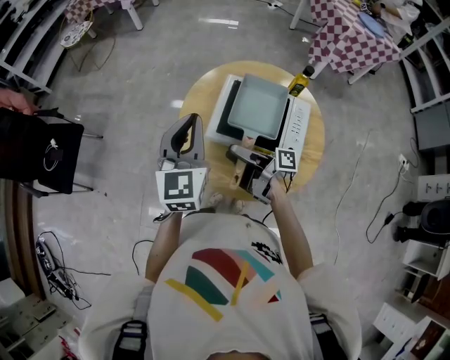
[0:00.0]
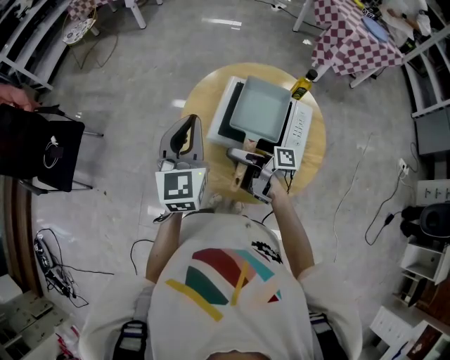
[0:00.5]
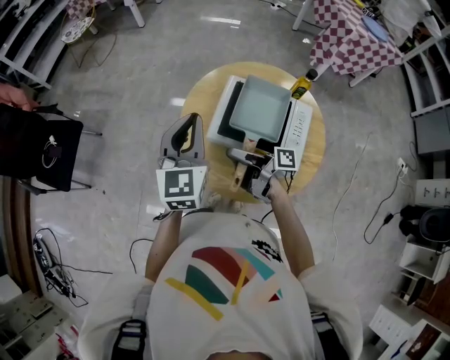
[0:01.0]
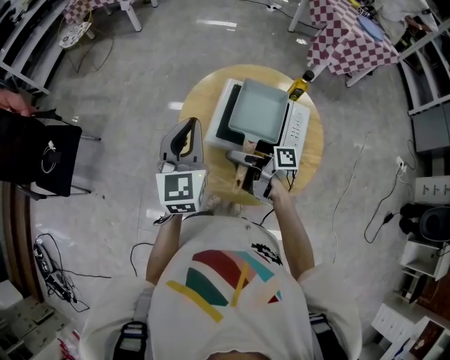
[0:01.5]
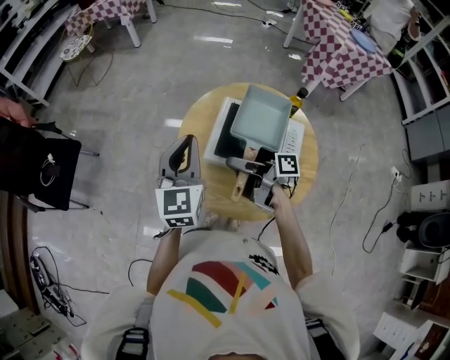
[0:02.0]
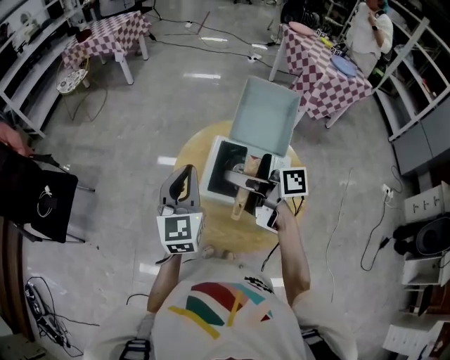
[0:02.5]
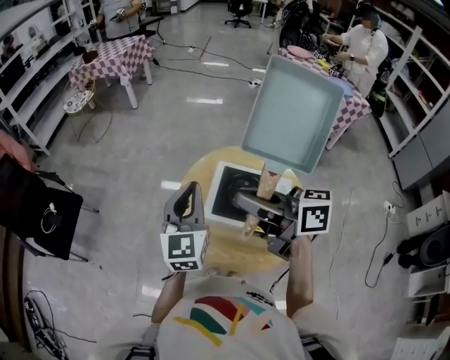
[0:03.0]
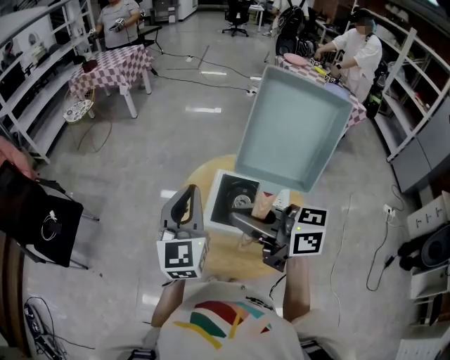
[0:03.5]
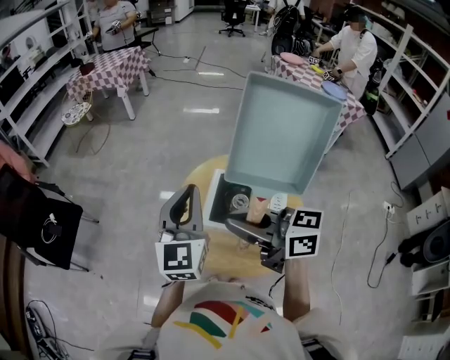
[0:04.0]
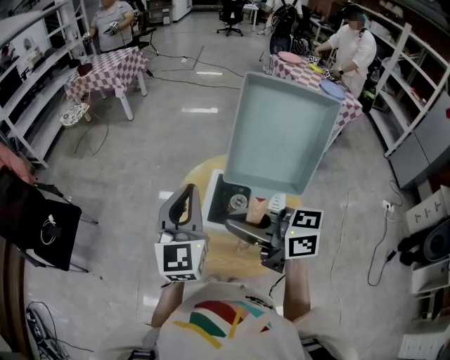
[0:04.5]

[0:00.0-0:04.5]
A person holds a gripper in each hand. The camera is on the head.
0:00.0 to 0:02.0: The right gripper closes up.
0:02.0 to 0:04.5: The left gripper shifts approximately 10 cm upward, while the right gripper is displaced upward by roughly 25 cm, and twists about 60 degrees counterclockwise, seen from behind.

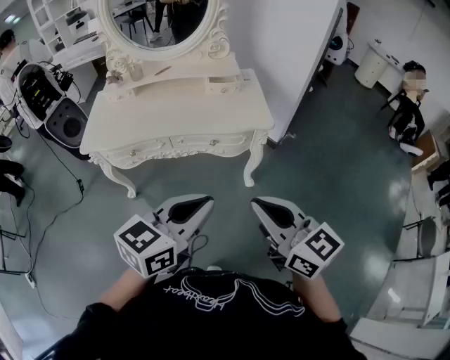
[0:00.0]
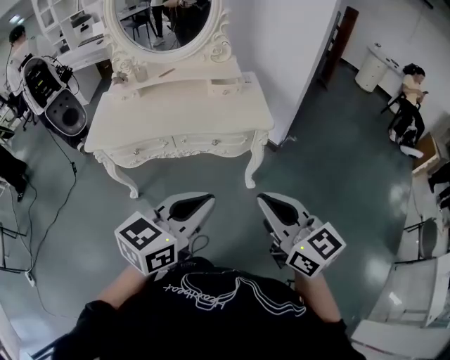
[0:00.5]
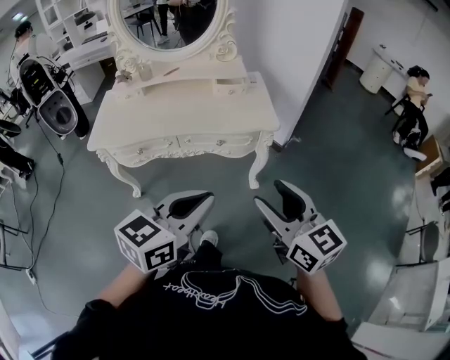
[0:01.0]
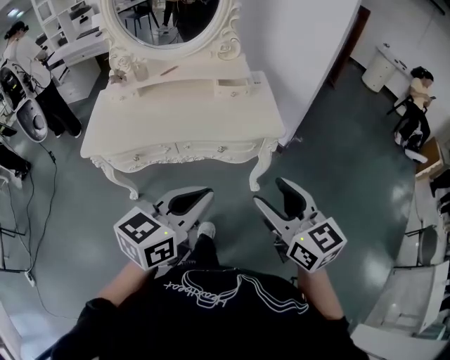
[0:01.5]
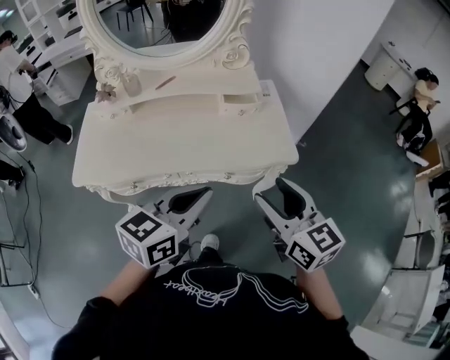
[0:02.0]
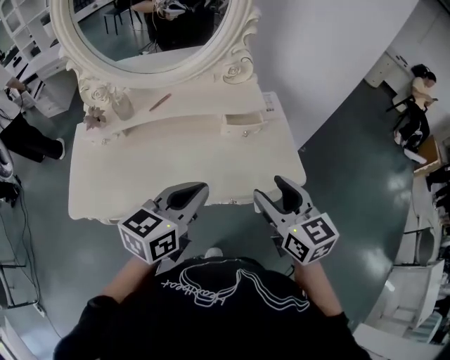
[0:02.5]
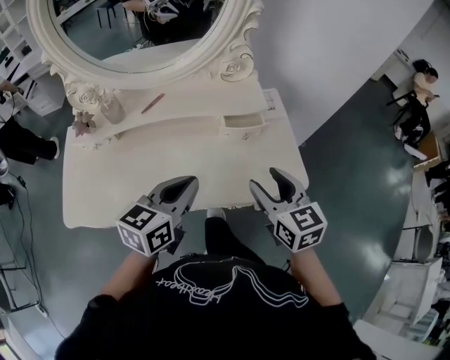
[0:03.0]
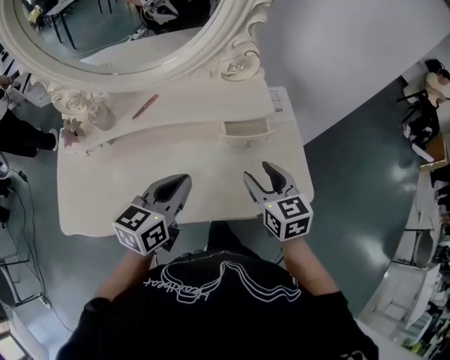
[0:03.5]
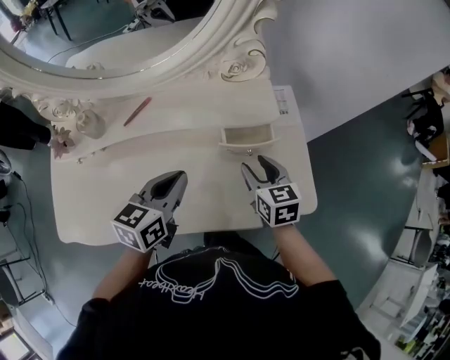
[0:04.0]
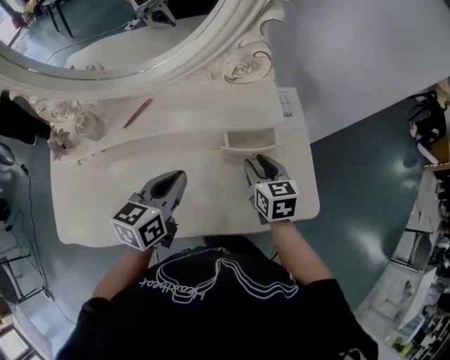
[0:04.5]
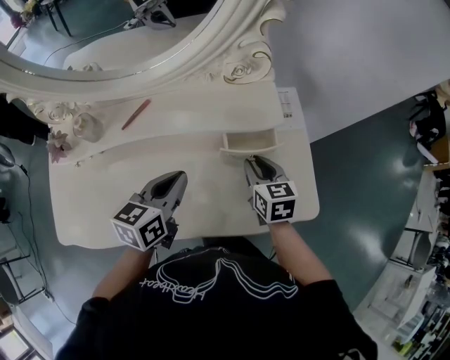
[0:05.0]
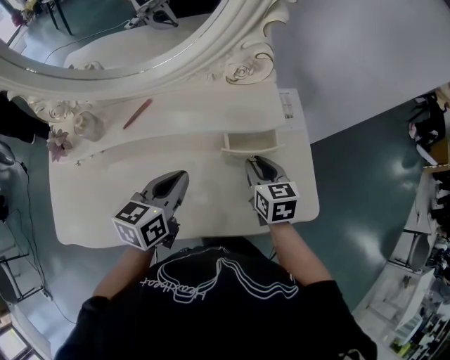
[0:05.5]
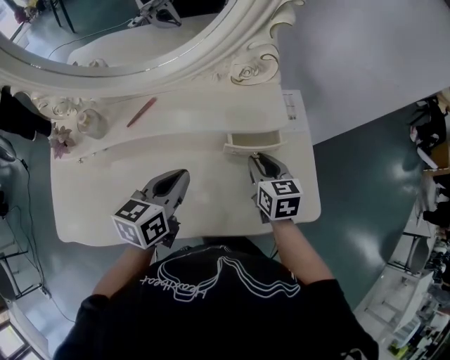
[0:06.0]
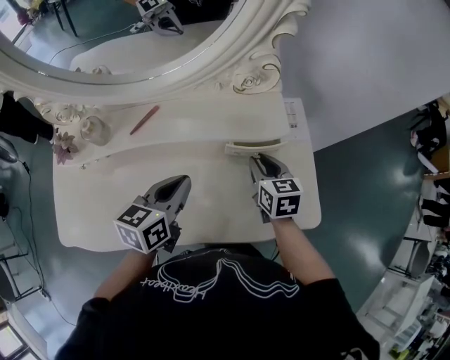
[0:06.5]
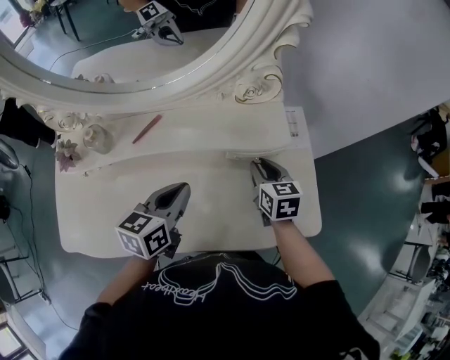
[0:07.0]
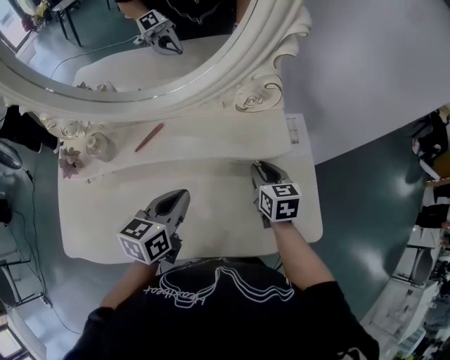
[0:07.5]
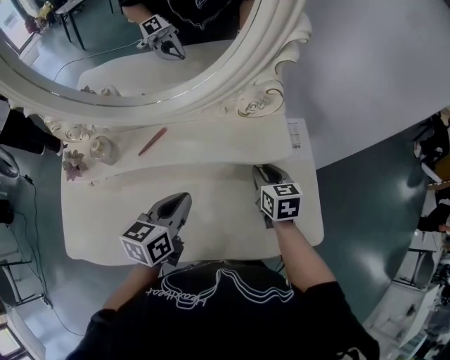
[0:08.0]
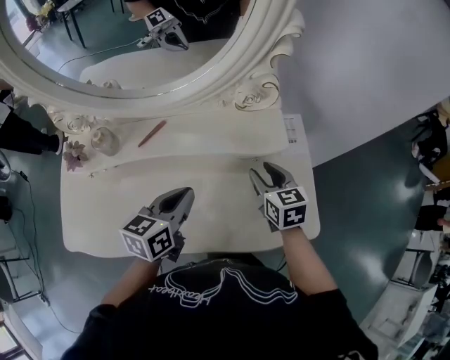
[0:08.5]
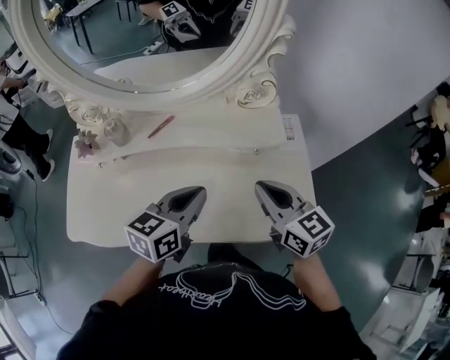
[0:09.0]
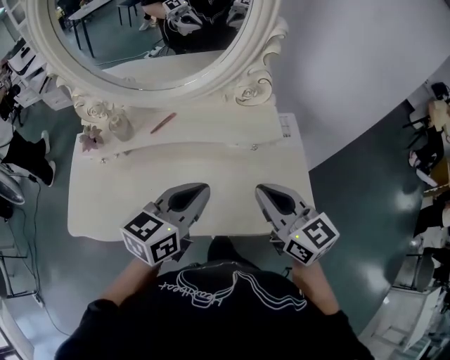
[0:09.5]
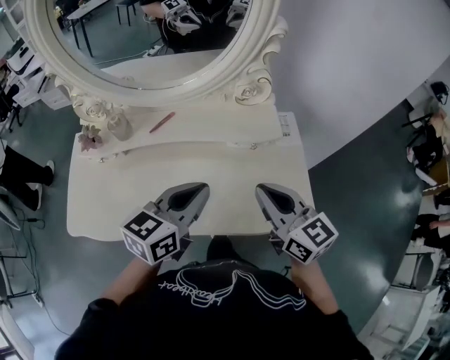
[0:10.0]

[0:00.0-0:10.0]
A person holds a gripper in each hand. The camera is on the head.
0:00.0 to 0:02.0: The right gripper shifts roughly 25 cm forward, and opens; the left gripper is displaced forward and to the left by some 25 cm.
0:02.0 to 0:04.0: The grippers both shift forward and downward by some 35 cm. The right gripper rotates approximately 20 degrees.
0:04.0 to 0:06.0: The grippers move only a little.
0:06.0 to 0:08.0: The right gripper goes roughly 5 cm forward.
0:08.0 to 0:10.0: The right gripper shifts roughly 25 cm upward and backward, and rotates approximately 30 degrees. The left gripper is displaced upward, backward and to the right by approximately 15 cm.

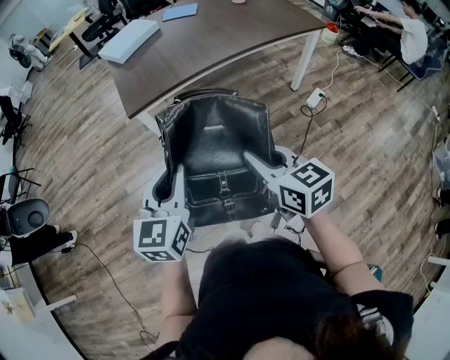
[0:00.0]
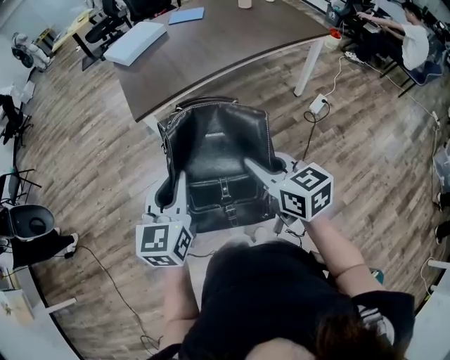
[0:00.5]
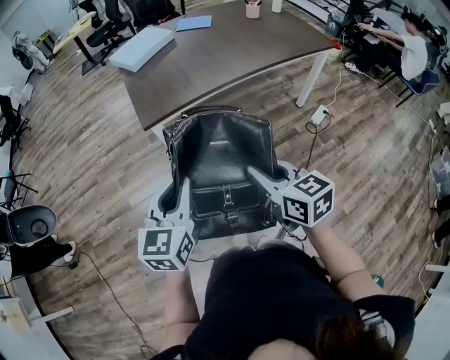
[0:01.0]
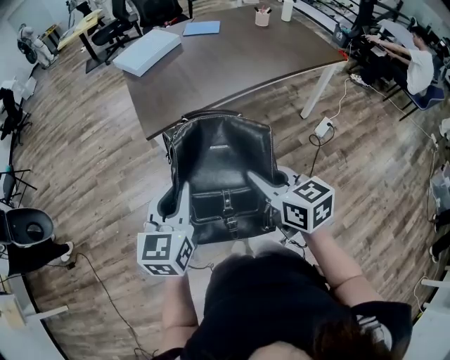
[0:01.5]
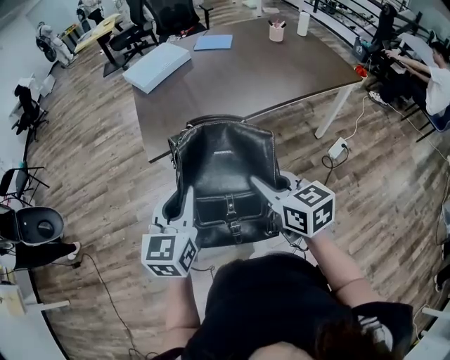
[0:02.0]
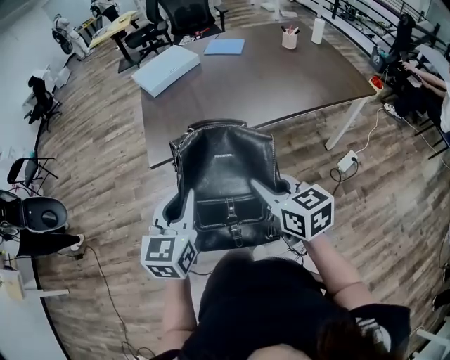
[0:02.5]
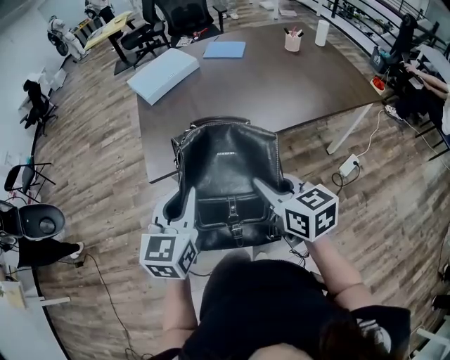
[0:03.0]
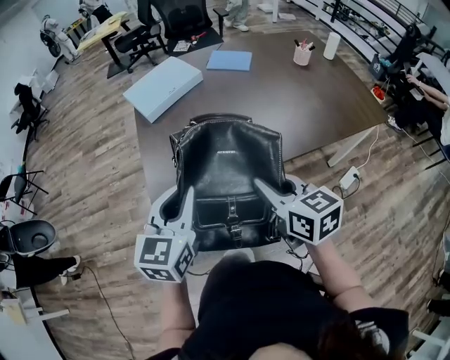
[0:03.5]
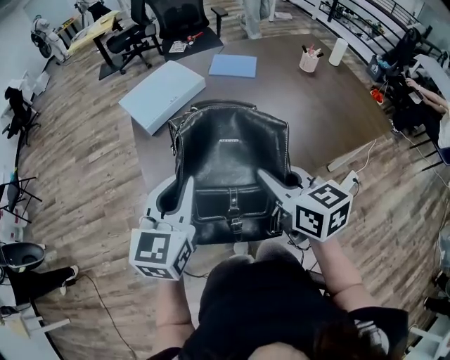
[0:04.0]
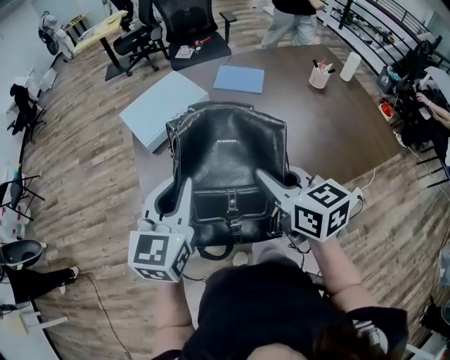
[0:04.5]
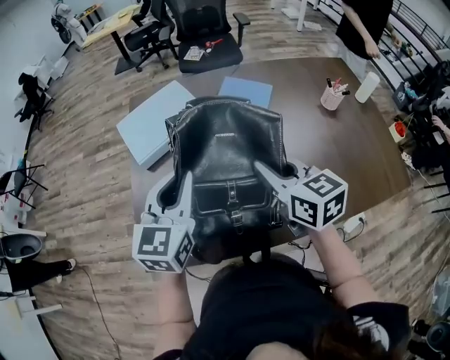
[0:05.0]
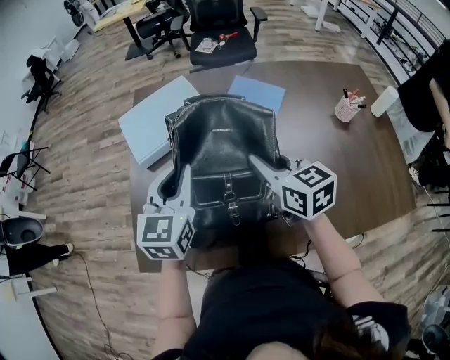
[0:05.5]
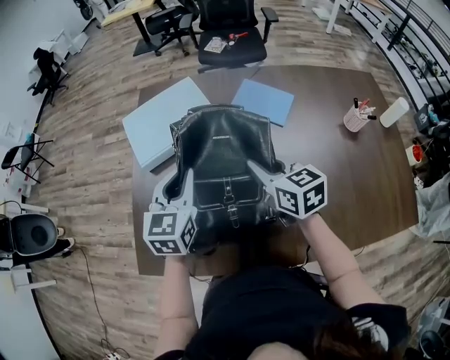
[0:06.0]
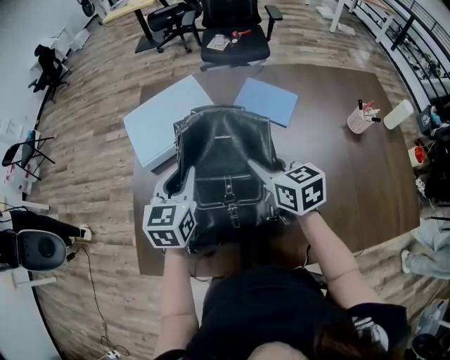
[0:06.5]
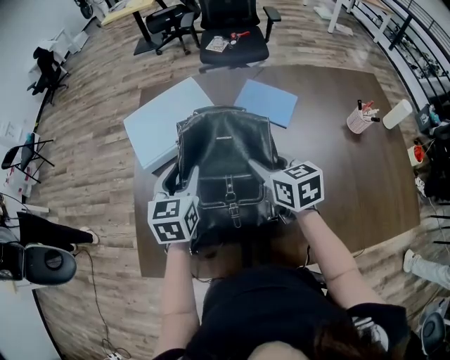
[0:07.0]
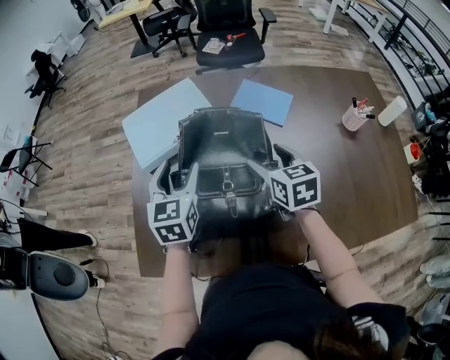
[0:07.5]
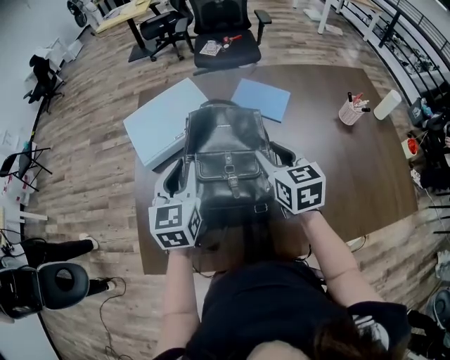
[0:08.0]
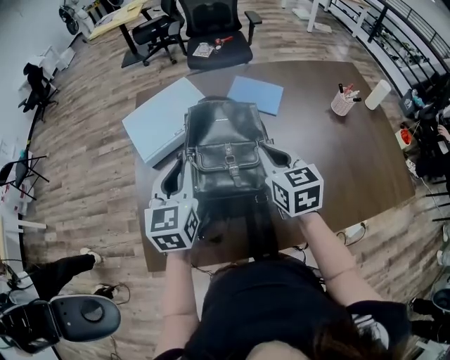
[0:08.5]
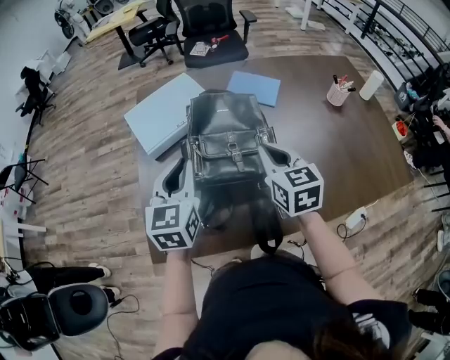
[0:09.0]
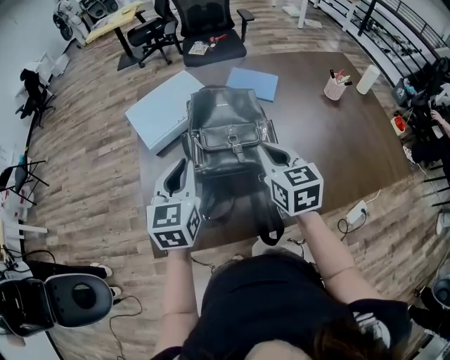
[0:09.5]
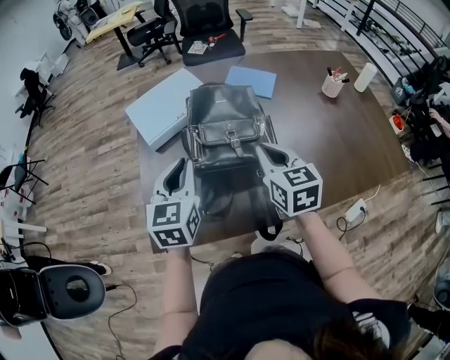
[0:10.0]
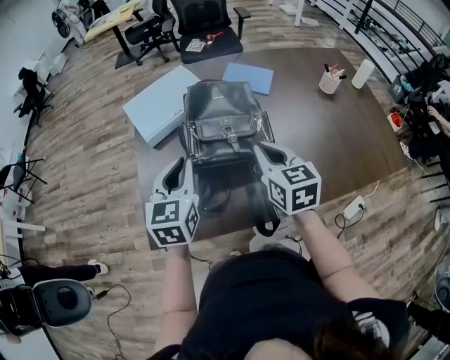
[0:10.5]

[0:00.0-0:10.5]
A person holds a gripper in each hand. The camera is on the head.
0:00.0 to 0:02.0: Both grippers travel together forward, about 15 cm.
0:02.0 to 0:04.0: The two grippers go some 35 cm forward.
0:04.0 to 0:06.5: Both grippers move forward, about 30 cm. The left gripper swivels some 20 degrees.
0:06.5 to 0:08.5: The left gripper is displaced upward by about 5 cm, and opens, then closes again. Meanwhile the right gripper shifts roughly 5 cm backward, changes its angle by some 20 degrees, and opens, then closes once more.
0:08.5 to 0:10.5: The two grippers go roughly 10 cm backward.

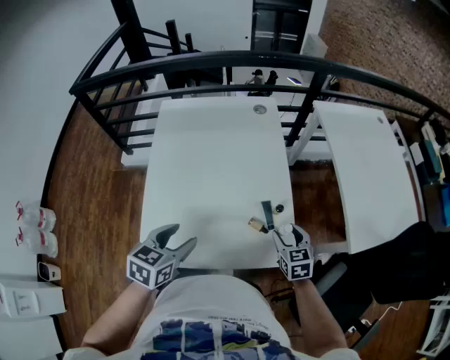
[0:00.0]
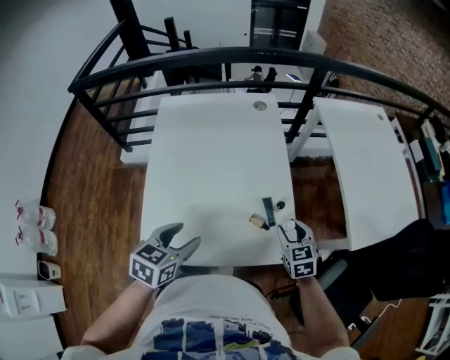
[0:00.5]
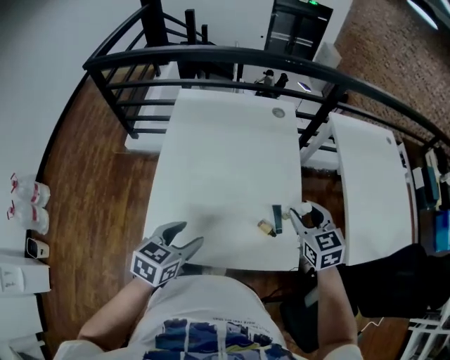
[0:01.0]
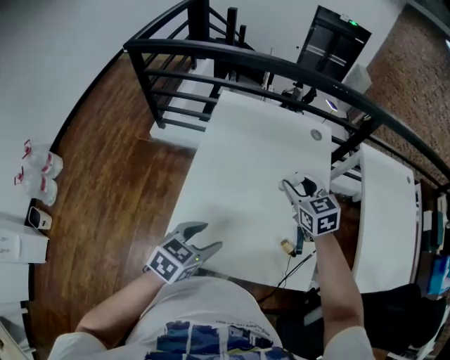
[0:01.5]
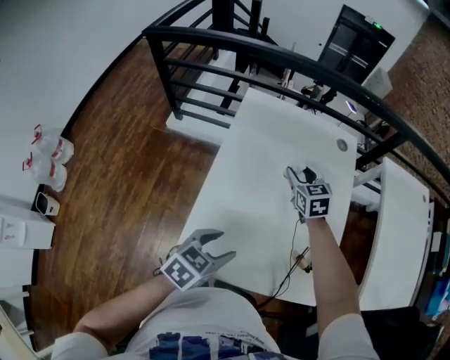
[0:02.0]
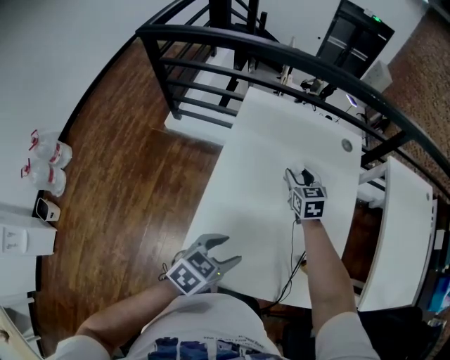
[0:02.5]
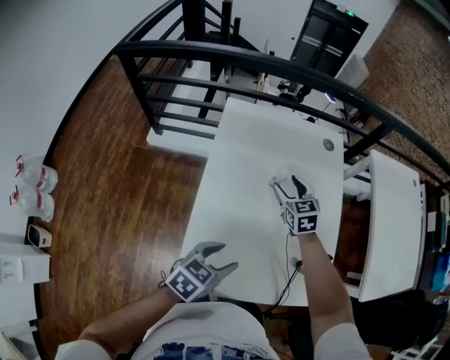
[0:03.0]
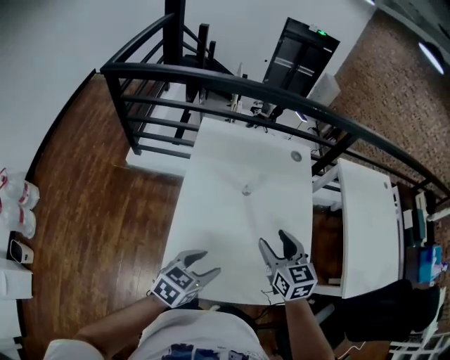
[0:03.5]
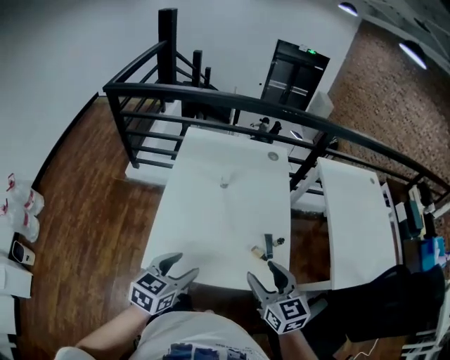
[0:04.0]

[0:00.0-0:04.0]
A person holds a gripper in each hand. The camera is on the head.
0:00.0 to 0:02.0: The left gripper goes about 10 cm to the left. Meanwhile the right gripper travels to the left and forward by roughly 40 cm, and changes its angle by some 20 degrees.
0:02.0 to 0:04.0: The left gripper moves backward, upward and to the right, some 15 cm. Meanwhile the right gripper goes approximately 40 cm backward, to the right and upward, and opens its fingers.
